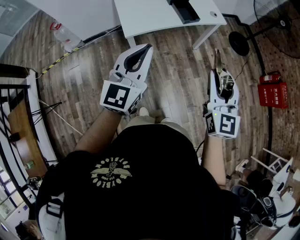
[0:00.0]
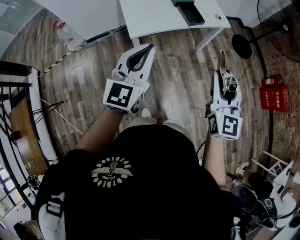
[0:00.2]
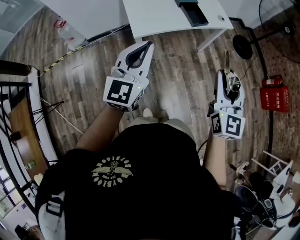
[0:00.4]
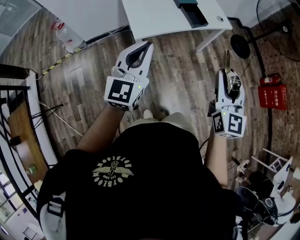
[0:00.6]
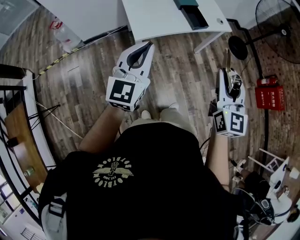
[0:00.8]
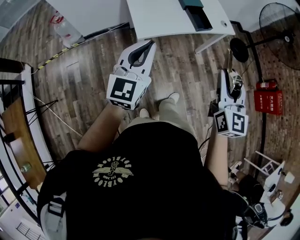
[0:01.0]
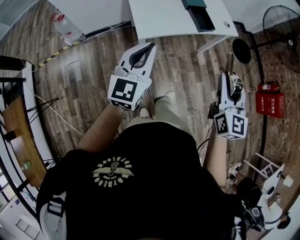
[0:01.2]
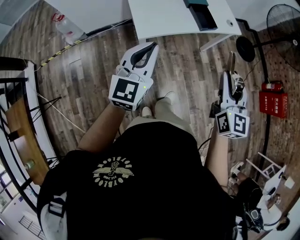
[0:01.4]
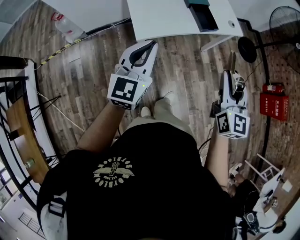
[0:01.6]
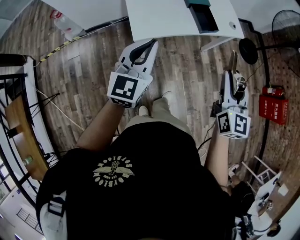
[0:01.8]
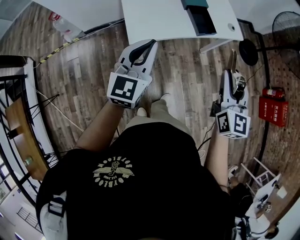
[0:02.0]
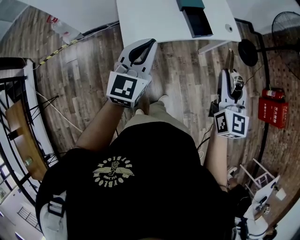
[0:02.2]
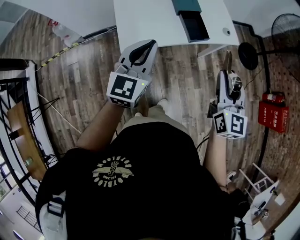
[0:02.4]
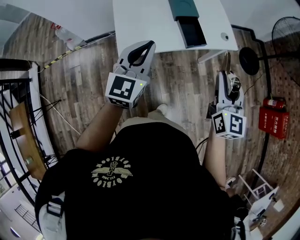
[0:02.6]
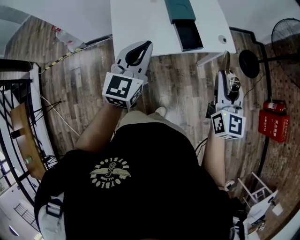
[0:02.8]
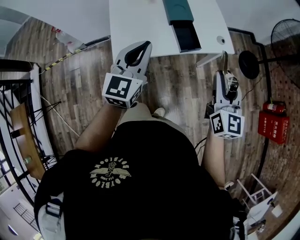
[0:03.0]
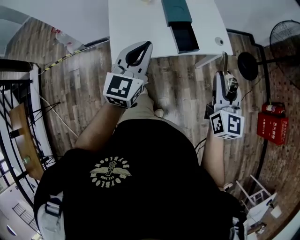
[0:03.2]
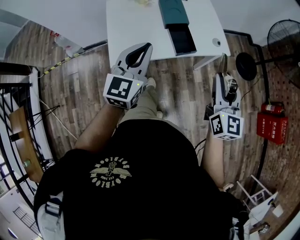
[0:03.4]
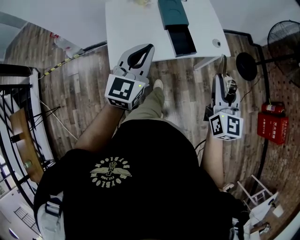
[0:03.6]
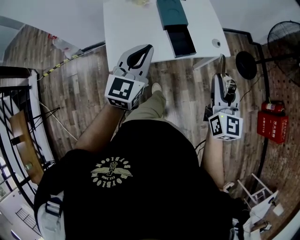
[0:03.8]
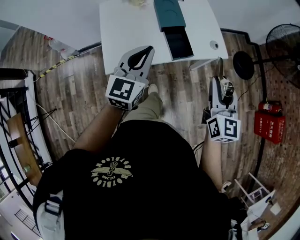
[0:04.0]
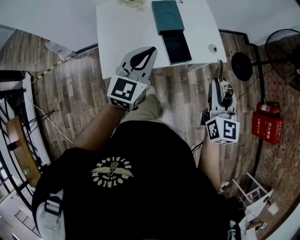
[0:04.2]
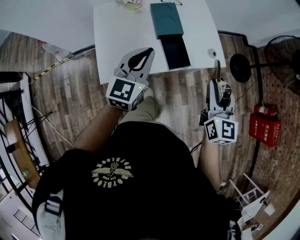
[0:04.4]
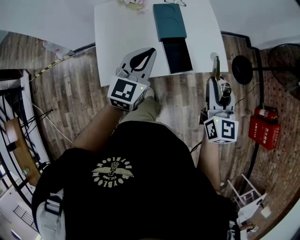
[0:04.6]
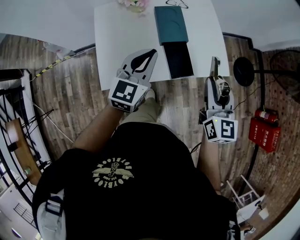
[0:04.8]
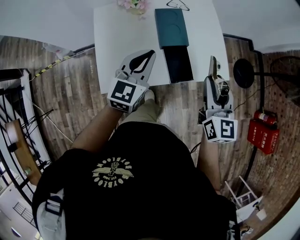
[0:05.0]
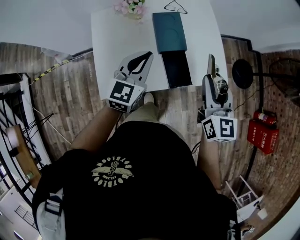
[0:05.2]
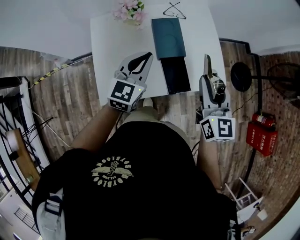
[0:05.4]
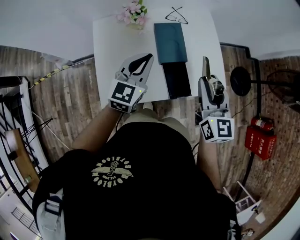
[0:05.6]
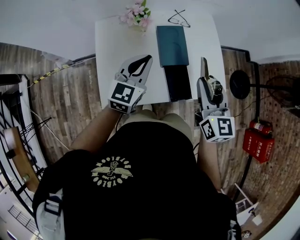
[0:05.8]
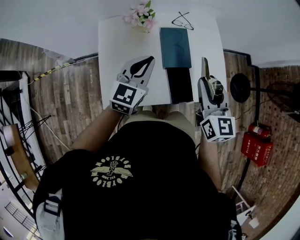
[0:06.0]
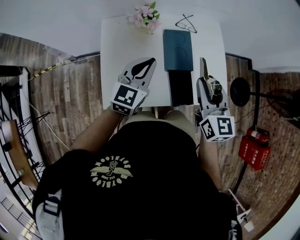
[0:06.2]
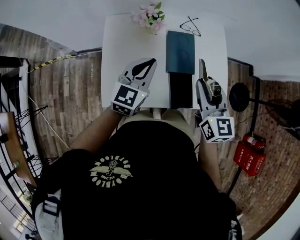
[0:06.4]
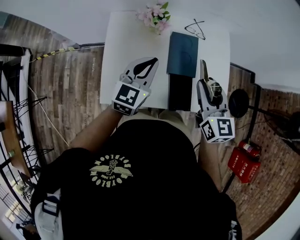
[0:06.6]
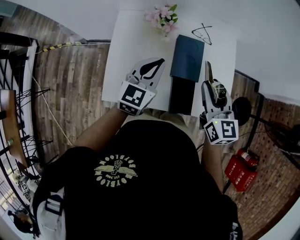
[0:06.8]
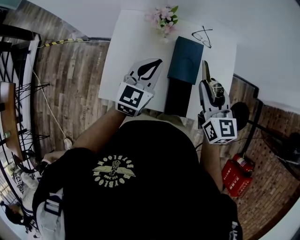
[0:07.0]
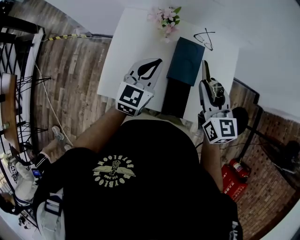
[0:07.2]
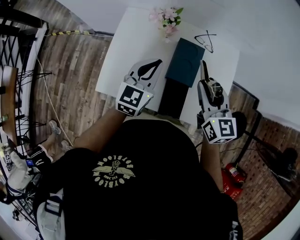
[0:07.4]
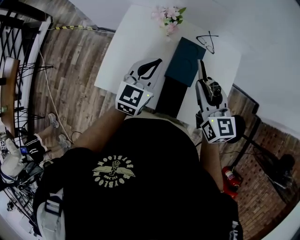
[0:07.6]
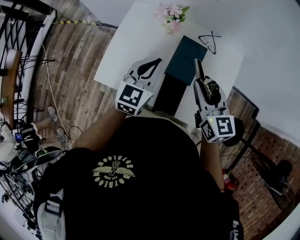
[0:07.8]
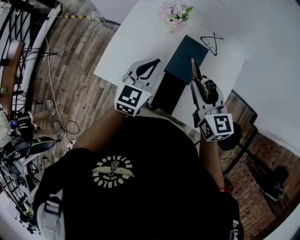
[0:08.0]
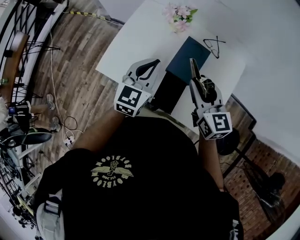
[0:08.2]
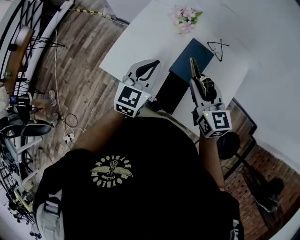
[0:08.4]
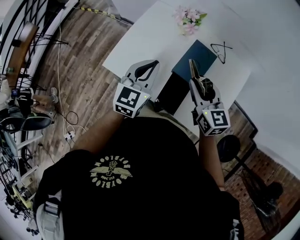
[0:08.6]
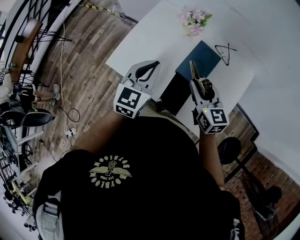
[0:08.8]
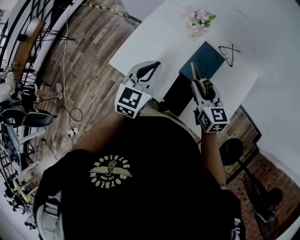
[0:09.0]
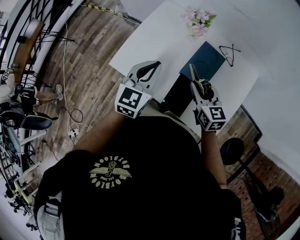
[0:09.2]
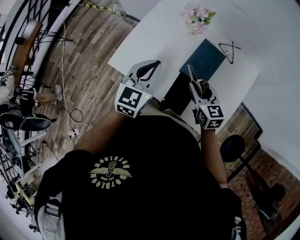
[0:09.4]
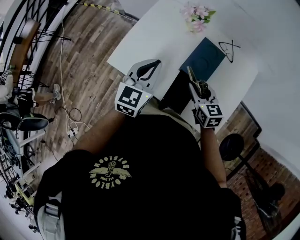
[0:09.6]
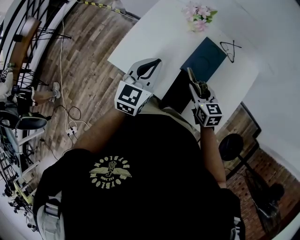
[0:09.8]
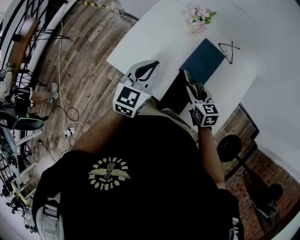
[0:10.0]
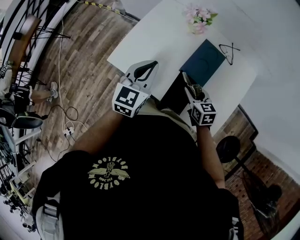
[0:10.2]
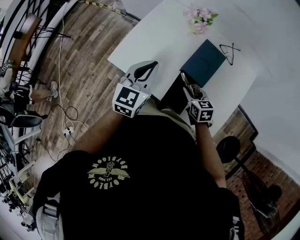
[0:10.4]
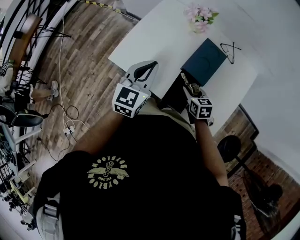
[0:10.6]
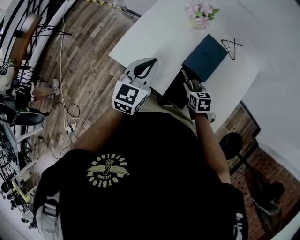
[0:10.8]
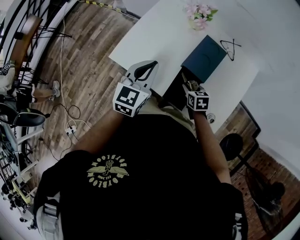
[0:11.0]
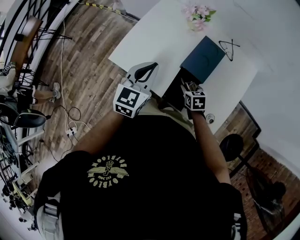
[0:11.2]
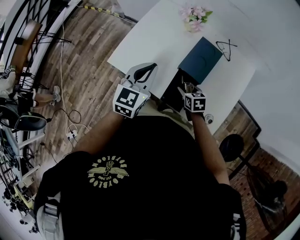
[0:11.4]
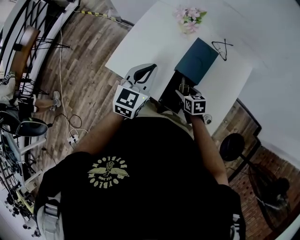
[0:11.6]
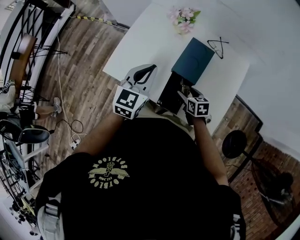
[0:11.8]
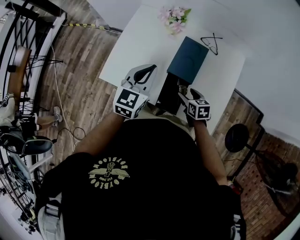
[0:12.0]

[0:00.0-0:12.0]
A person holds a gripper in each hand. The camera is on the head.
0:00.0 to 0:01.6: The left gripper goes approximately 15 cm forward, to the left and downward. Meanwhile the right gripper moves forward and to the left, approximately 15 cm.
0:01.6 to 0:03.0: The grippers both shift forward and to the right by about 20 cm.
0:03.0 to 0:04.4: The two grippers go roughly 10 cm forward.
0:04.4 to 0:06.0: Both grippers move forward and to the left, roughly 20 cm.
0:06.0 to 0:07.6: The right gripper moves about 10 cm, and swivels about 30 degrees. Meanwhile the left gripper changes its angle by some 20 degrees.
0:07.6 to 0:09.0: The right gripper heads downward, covering roughly 10 cm, while the left gripper goes some 5 cm backward.
0:09.0 to 0:10.4: The right gripper heads downward, covering some 15 cm, and turns by approximately 20 degrees.
0:10.4 to 0:12.0: The right gripper opens its fingers. The left gripper moves to the right, roughly 5 cm.

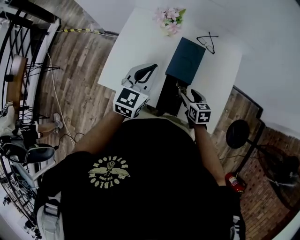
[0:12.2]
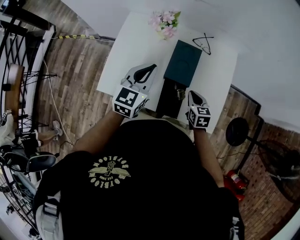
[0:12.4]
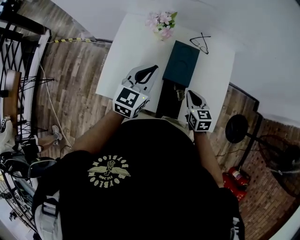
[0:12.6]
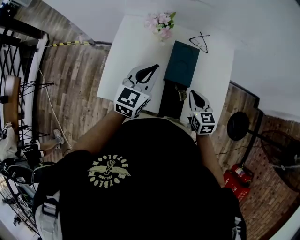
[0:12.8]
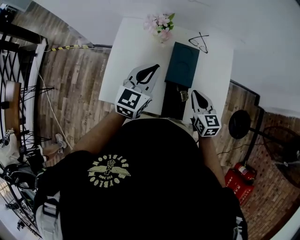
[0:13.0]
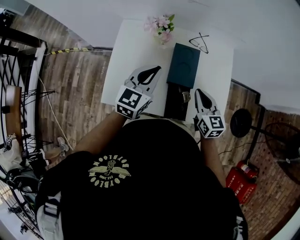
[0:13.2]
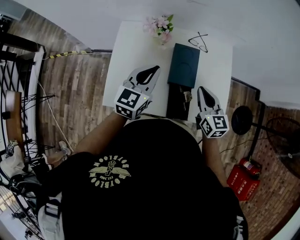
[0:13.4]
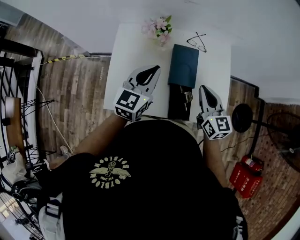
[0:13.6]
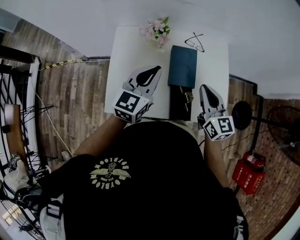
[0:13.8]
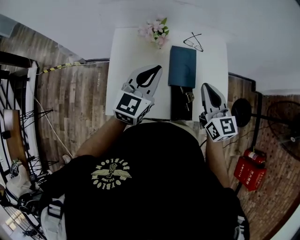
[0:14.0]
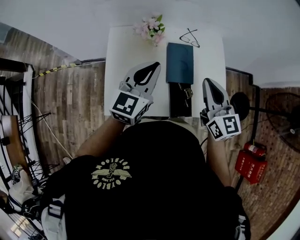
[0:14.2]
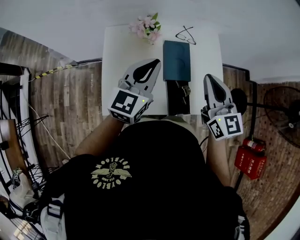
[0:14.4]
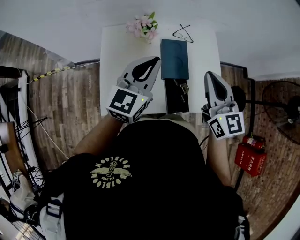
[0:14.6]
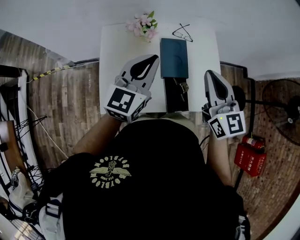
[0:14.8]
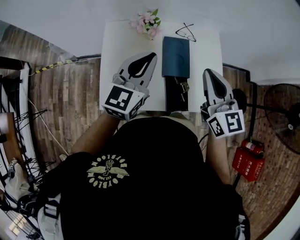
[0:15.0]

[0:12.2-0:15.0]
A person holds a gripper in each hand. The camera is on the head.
0:12.2 to 0:13.6: The left gripper ends up roughly 5 cm from where it was. Meanwhile the right gripper is displaced upward by about 20 cm, turns by about 40 degrees, and closes its fingers.
0:13.6 to 0:15.0: The left gripper travels upward by roughly 5 cm. Meanwhile the right gripper shifts roughly 10 cm upward.

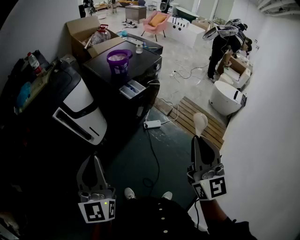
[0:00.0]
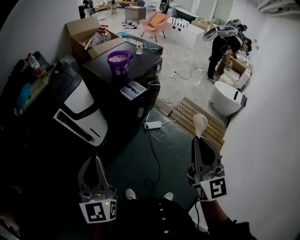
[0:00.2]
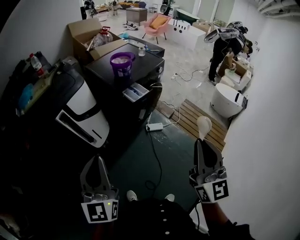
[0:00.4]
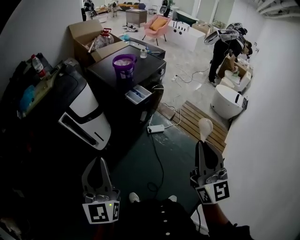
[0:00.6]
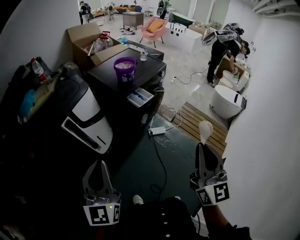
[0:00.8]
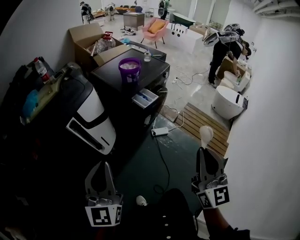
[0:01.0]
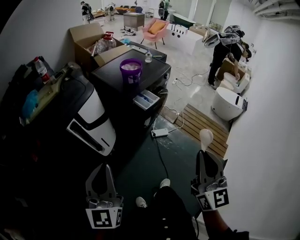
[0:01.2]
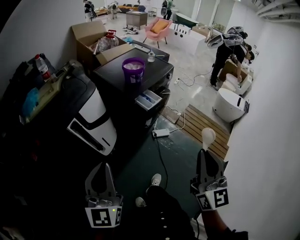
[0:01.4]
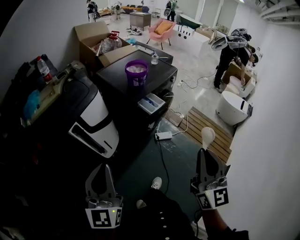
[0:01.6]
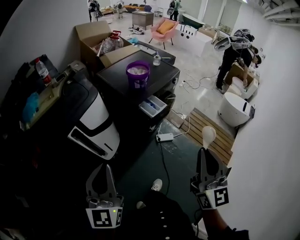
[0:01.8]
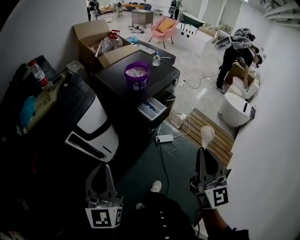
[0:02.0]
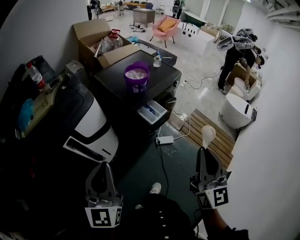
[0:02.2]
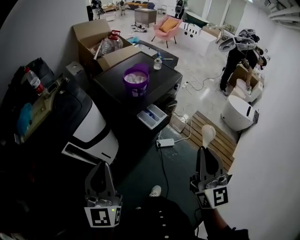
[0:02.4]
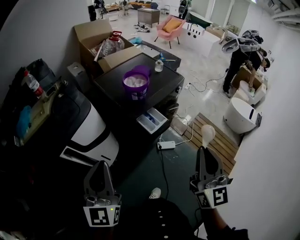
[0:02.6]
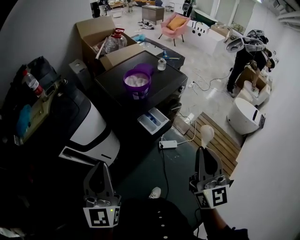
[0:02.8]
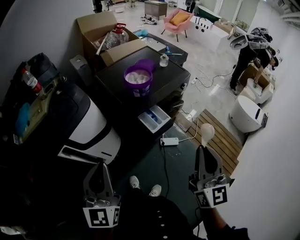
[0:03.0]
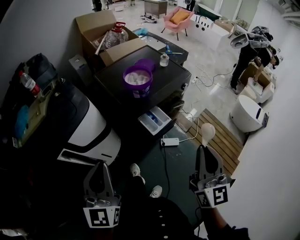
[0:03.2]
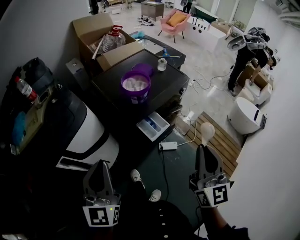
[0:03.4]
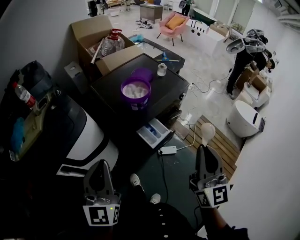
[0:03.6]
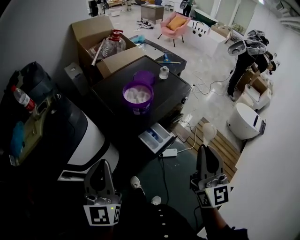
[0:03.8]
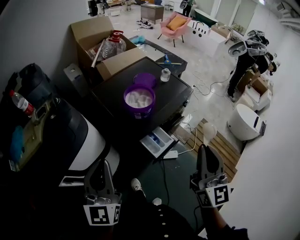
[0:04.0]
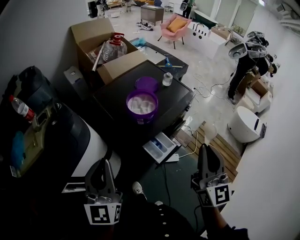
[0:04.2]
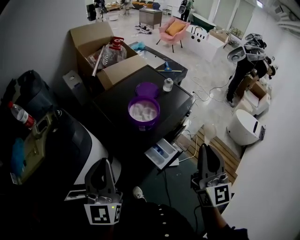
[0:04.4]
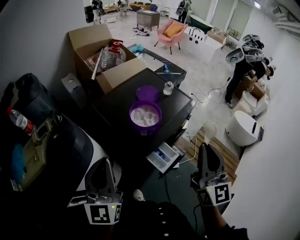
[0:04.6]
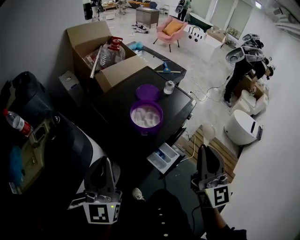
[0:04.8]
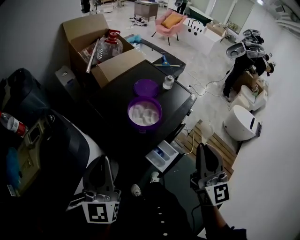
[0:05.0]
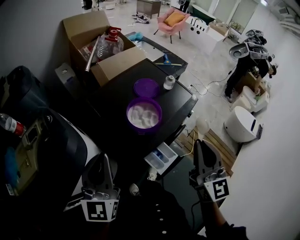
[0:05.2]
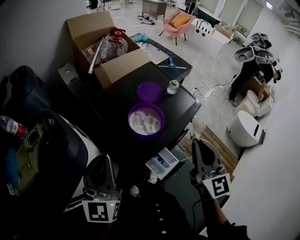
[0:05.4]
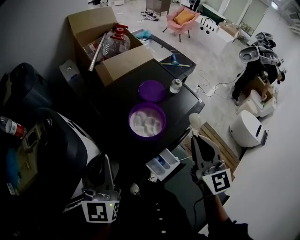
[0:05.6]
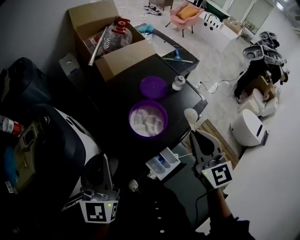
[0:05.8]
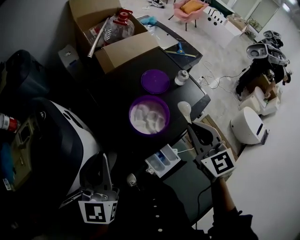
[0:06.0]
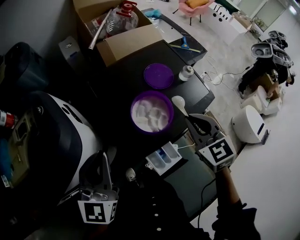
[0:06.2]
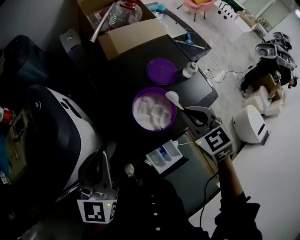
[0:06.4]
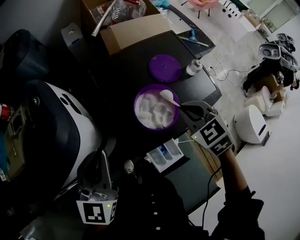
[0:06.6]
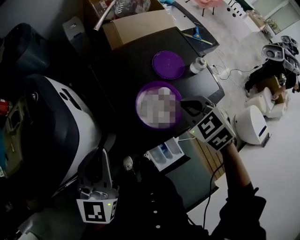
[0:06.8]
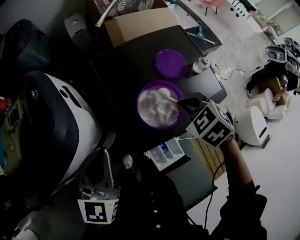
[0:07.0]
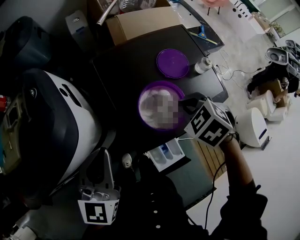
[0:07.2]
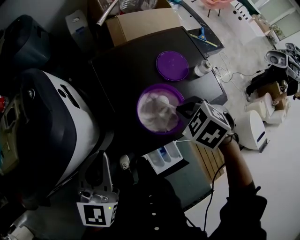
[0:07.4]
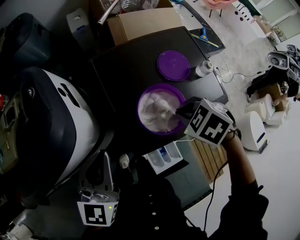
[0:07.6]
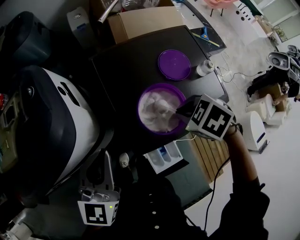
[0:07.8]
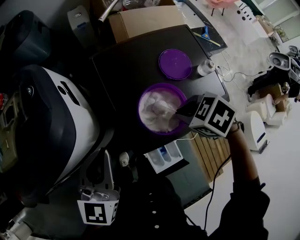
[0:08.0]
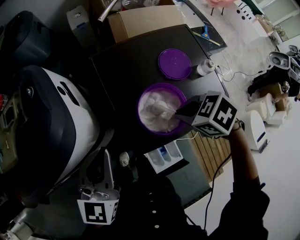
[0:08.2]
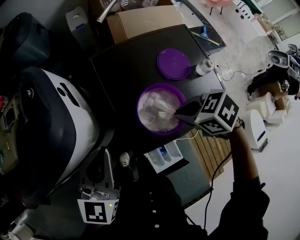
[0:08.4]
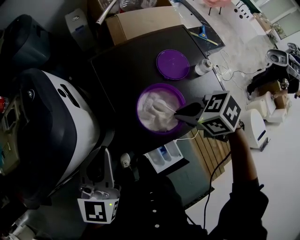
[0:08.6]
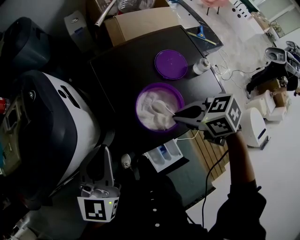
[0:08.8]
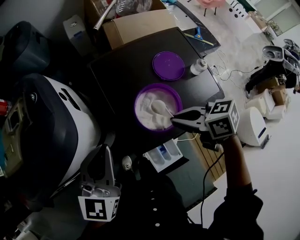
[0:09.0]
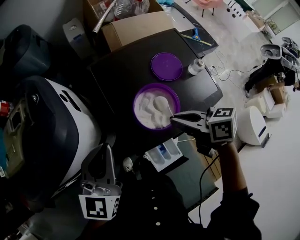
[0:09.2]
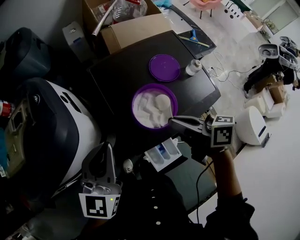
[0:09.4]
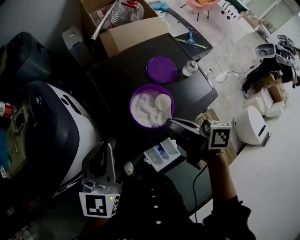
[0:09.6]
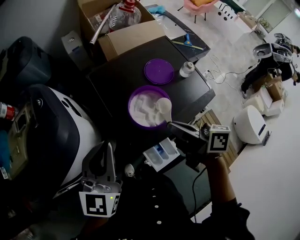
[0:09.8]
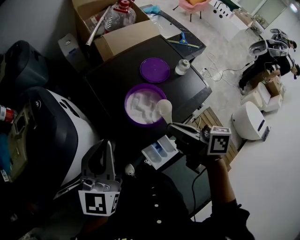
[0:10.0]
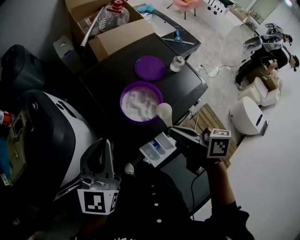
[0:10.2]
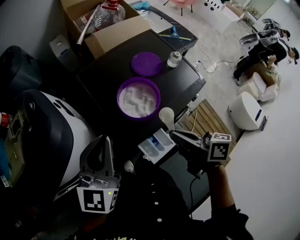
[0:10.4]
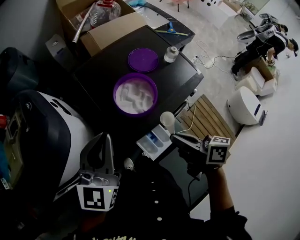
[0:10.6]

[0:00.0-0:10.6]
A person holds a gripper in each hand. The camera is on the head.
0:00.0 to 0:01.6: The two grippers go some 10 cm to the left and forward.
0:01.6 to 0:03.0: Both grippers travel together forward, some 20 cm.
0:03.0 to 0:04.6: The grippers both shift forward by roughly 20 cm.
0:04.6 to 0:06.0: The left gripper shifts about 10 cm forward and downward. Meanwhile the right gripper moves forward and downward, roughly 20 cm, and tips its fingers downward by some 30 degrees.
0:06.0 to 0:07.6: The right gripper travels downward by some 15 cm, and tips its fingers downward by approximately 50 degrees. Meanwhile the left gripper moves downward, roughly 5 cm.
0:07.6 to 0:09.0: The right gripper tilts its fingers roughly 40 degrees upward.
0:09.0 to 0:10.6: The left gripper moves about 5 cm. The right gripper goes some 15 cm backward, and swivels about 50 degrees.
